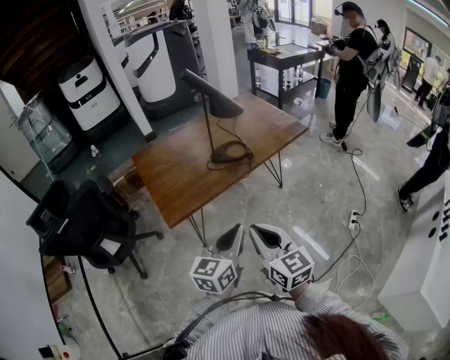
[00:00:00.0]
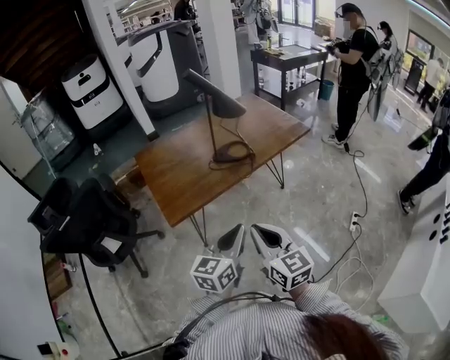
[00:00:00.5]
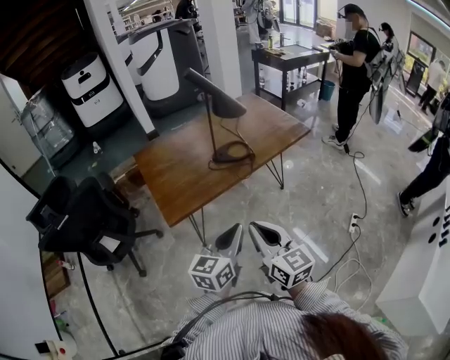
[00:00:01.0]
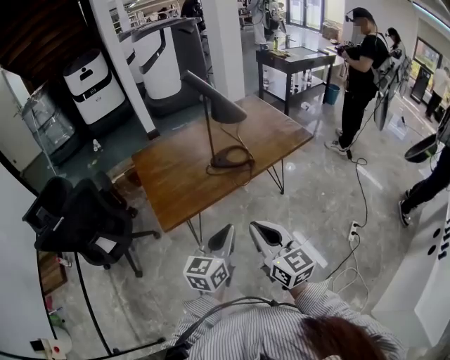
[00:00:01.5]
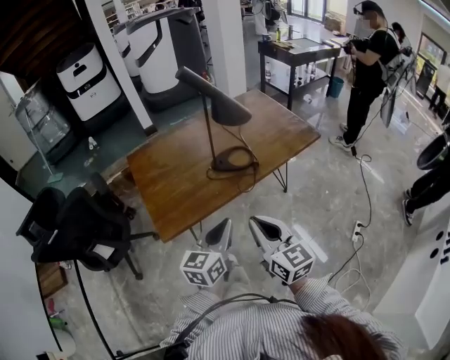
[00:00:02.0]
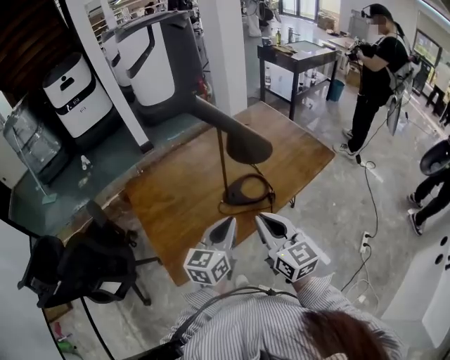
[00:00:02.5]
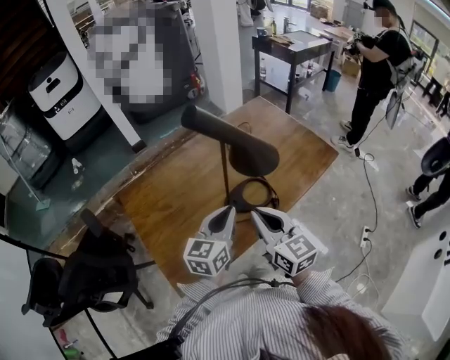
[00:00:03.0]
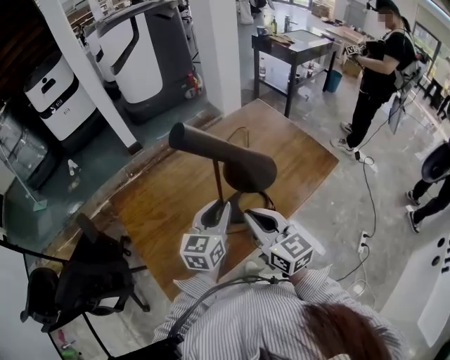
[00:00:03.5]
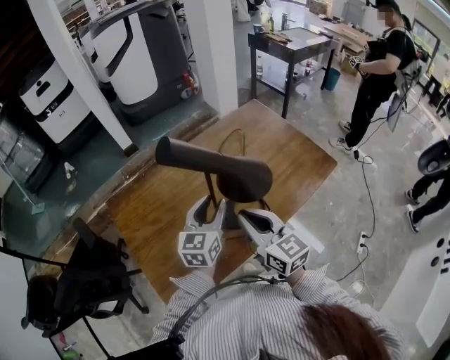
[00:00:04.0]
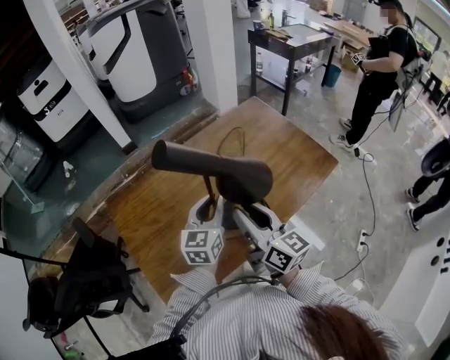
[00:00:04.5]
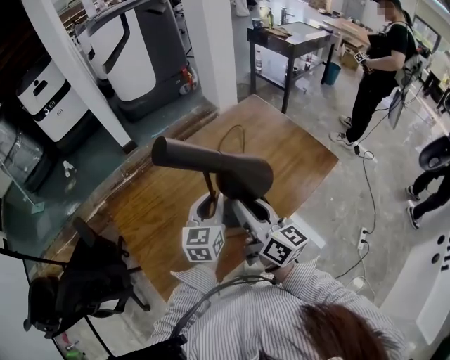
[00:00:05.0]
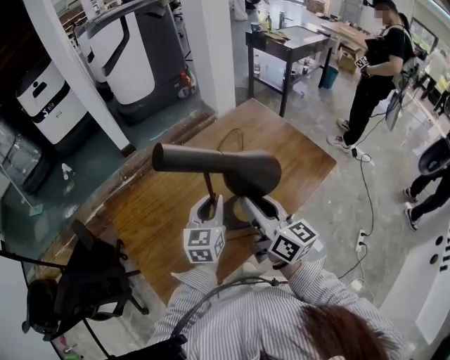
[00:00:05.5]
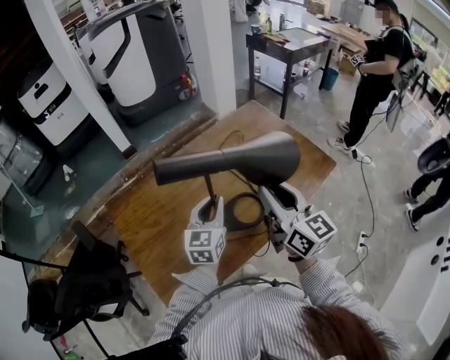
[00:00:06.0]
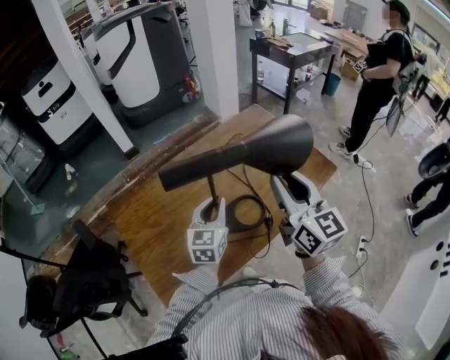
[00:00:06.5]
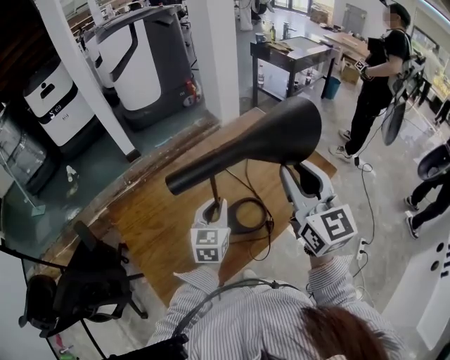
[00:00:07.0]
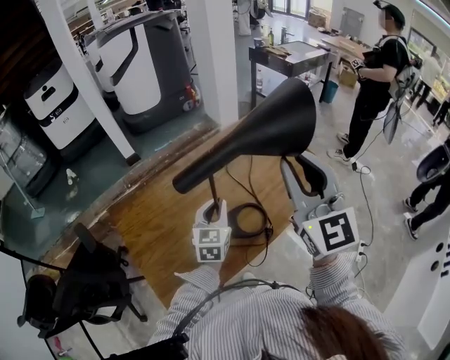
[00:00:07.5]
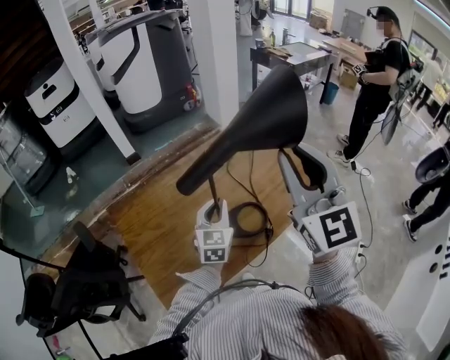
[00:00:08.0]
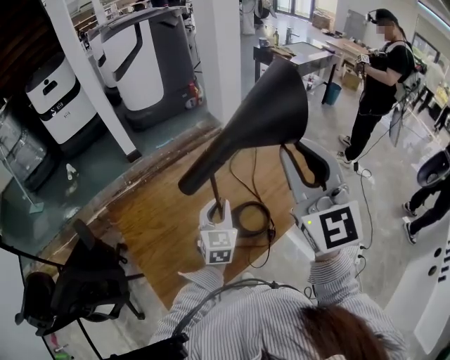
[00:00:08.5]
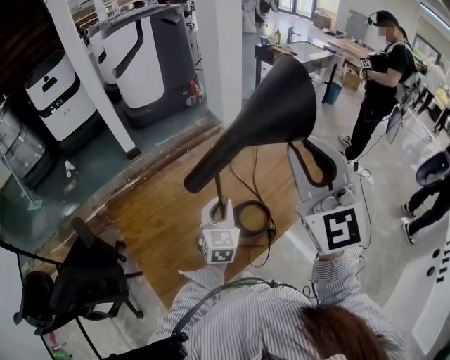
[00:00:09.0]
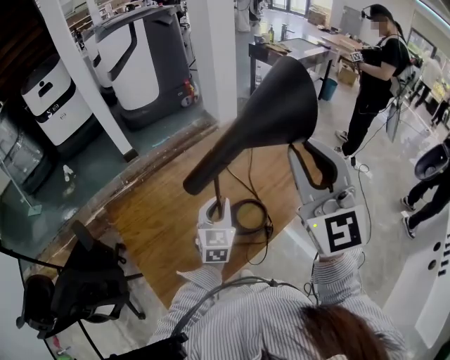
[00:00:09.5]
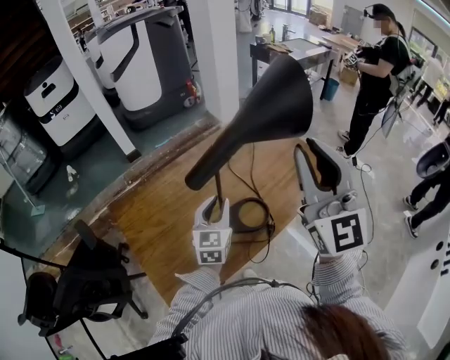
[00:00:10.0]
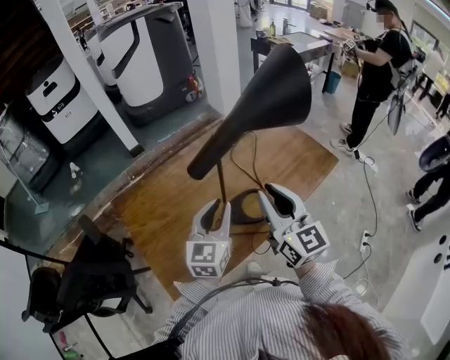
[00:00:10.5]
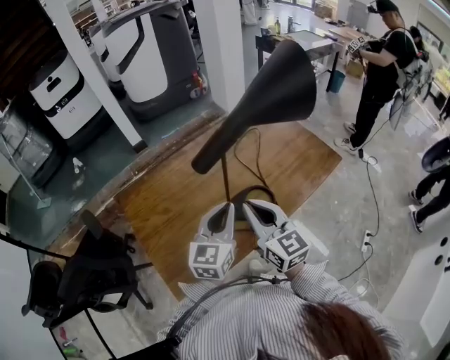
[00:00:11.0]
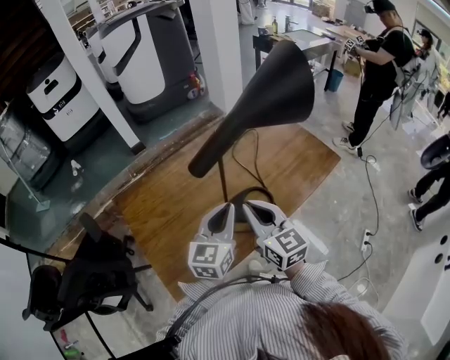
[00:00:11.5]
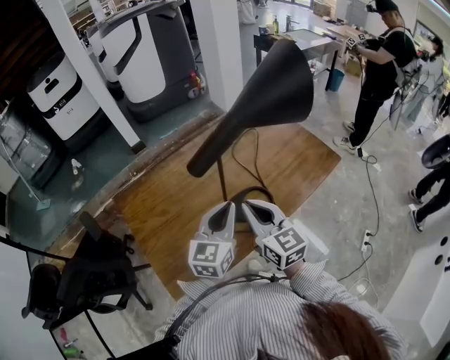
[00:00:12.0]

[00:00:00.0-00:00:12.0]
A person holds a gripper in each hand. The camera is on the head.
00:00:00.0 to 00:00:02.0: Both grippers travel together forward, some 15 cm.
00:00:02.0 to 00:00:04.0: Both grippers move forward, about 35 cm. The left gripper opens up.
00:00:04.0 to 00:00:06.0: The left gripper closes up, while the right gripper is displaced to the right and upward by approximately 10 cm, and opens its fingers.
00:00:06.0 to 00:00:08.0: The right gripper is displaced upward by about 15 cm, and turns by about 40 degrees.
00:00:08.0 to 00:00:10.0: There are only small adjustments of the grippers.
00:00:10.0 to 00:00:12.0: The left gripper travels backward by about 5 cm, and closes, while the right gripper shifts about 25 cm downward and to the left, and turns by approximately 40 degrees.

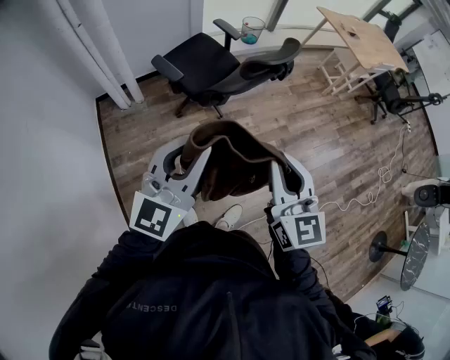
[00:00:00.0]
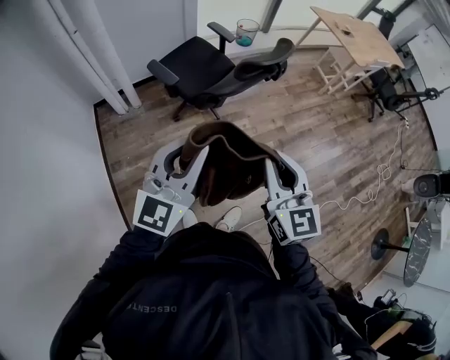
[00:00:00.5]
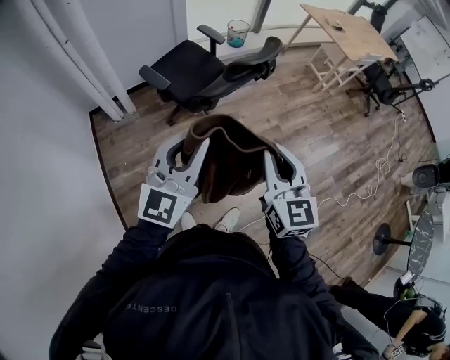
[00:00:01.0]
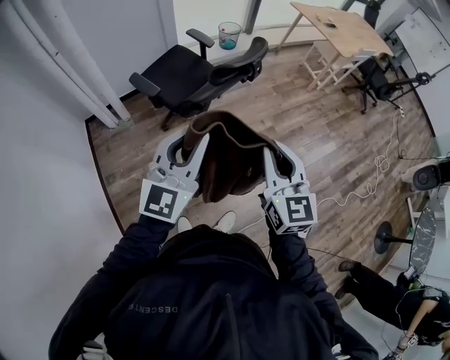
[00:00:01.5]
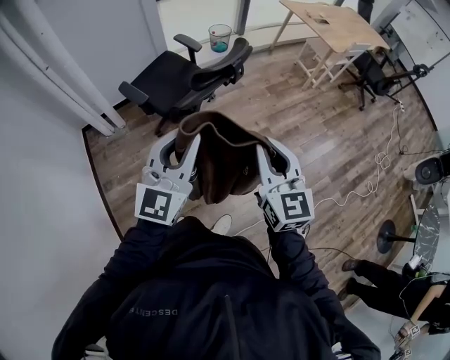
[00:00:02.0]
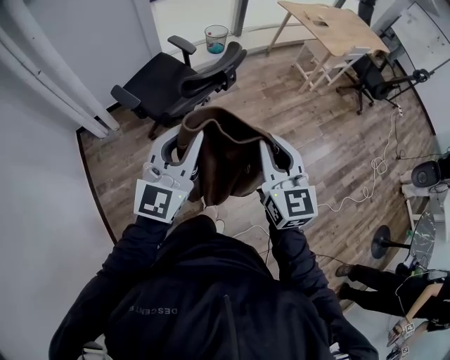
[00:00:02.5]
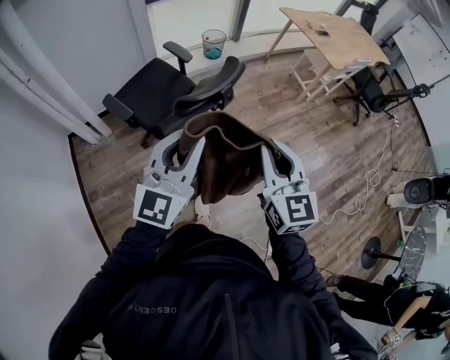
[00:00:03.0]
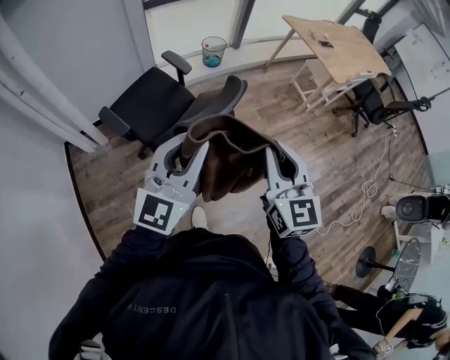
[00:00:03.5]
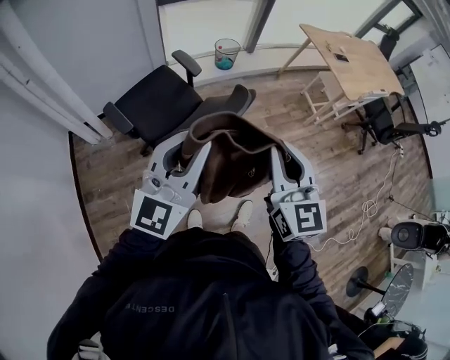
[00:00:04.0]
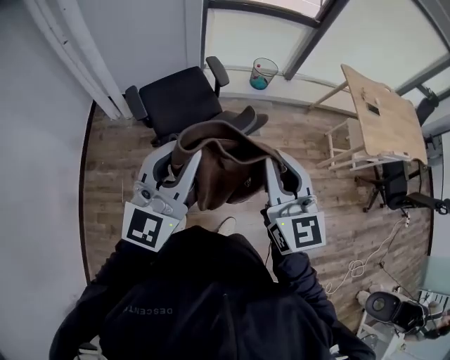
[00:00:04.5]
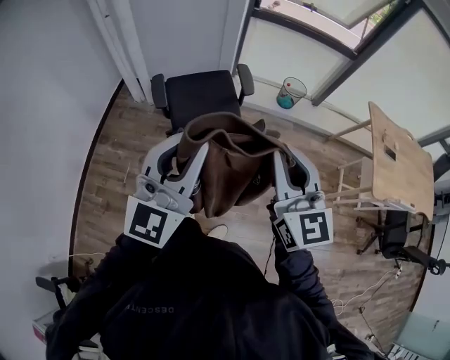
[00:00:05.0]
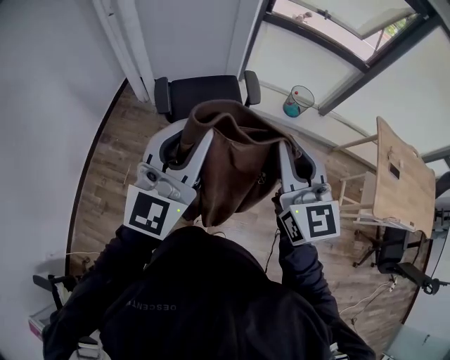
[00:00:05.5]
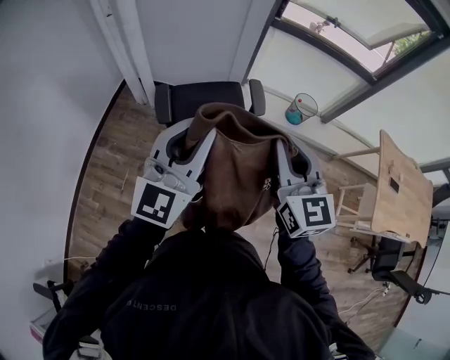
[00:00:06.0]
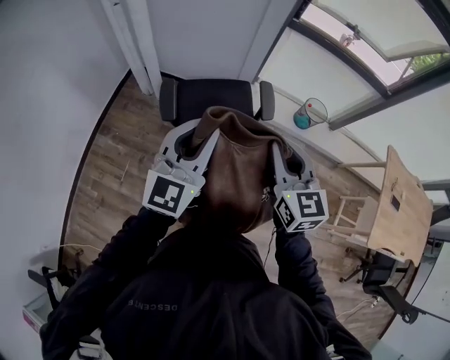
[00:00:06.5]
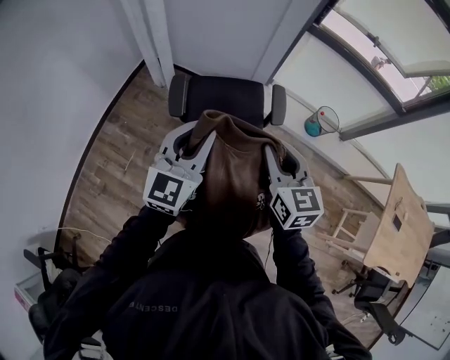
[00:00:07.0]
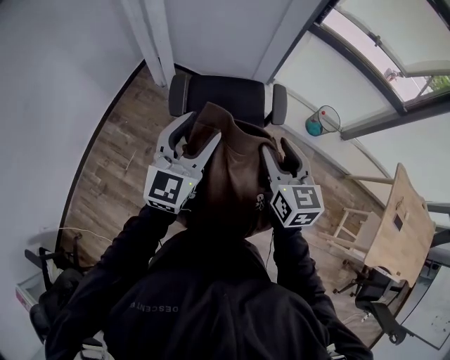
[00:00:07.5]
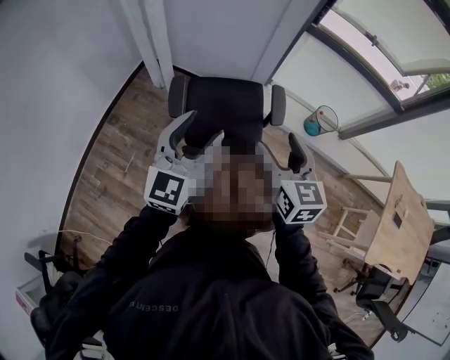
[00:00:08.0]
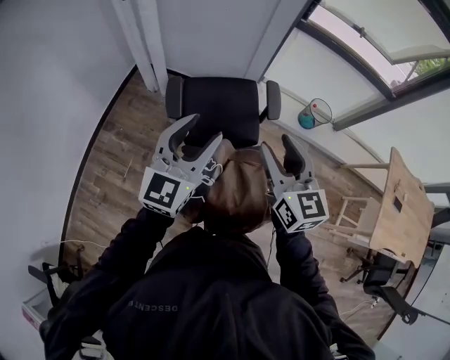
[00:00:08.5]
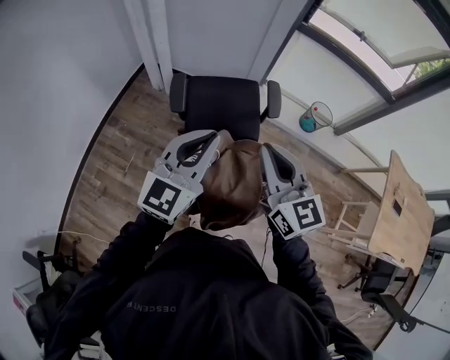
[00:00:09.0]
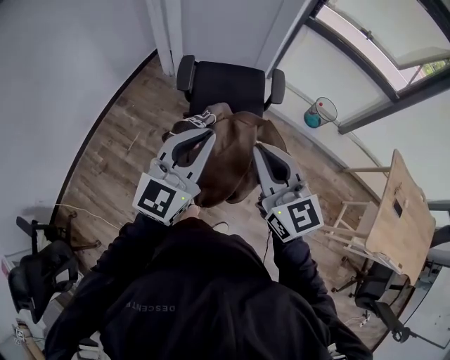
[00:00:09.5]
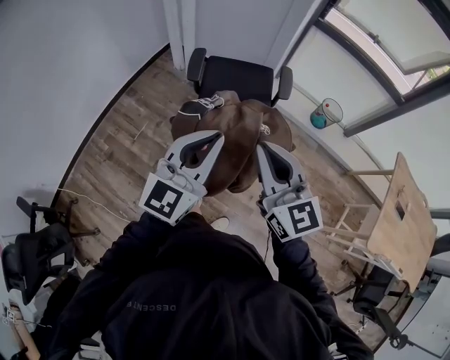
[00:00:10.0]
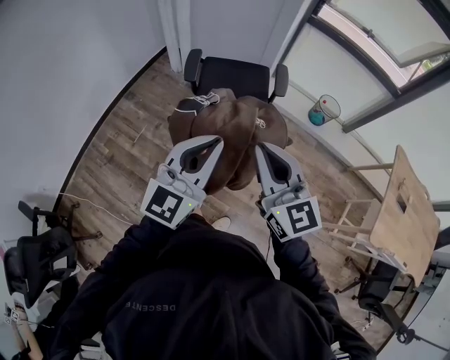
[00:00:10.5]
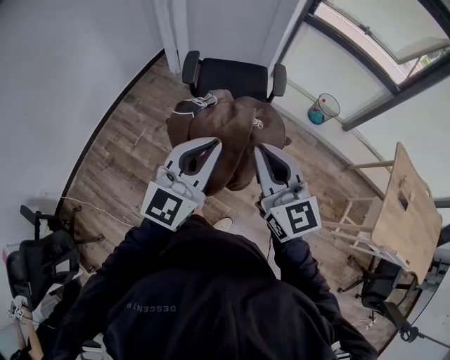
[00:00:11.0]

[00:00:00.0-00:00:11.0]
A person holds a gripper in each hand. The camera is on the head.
00:00:00.0 to 00:00:02.0: Both grippers travel together to the right and forward, about 15 cm.
00:00:02.0 to 00:00:03.5: Both grippers travel together forward, roughly 25 cm.
00:00:03.5 to 00:00:05.5: The left gripper changes place by approximately 15 cm, and swivels approximately 40 degrees. The right gripper moves roughly 25 cm, and swivels about 40 degrees.
00:00:05.5 to 00:00:07.5: The grippers both shift forward and downward by about 25 cm. The right gripper turns by some 20 degrees, and opens up. The left gripper swivels roughly 20 degrees, and opens up.
00:00:07.5 to 00:00:09.0: The right gripper shifts approximately 15 cm backward and upward, and closes, while the left gripper travels backward by roughly 10 cm, and closes.
00:00:09.0 to 00:00:11.0: Both grippers travel together backward, about 20 cm.
